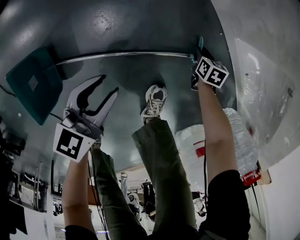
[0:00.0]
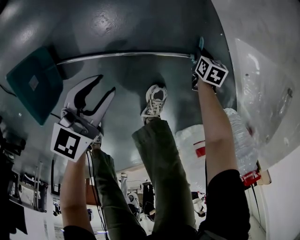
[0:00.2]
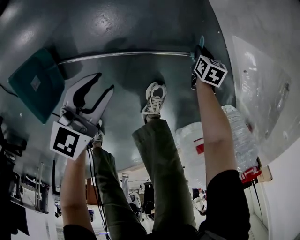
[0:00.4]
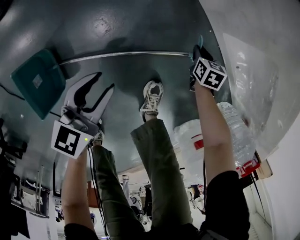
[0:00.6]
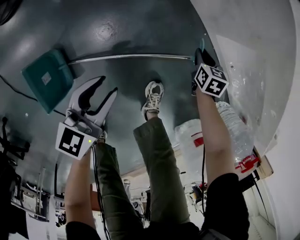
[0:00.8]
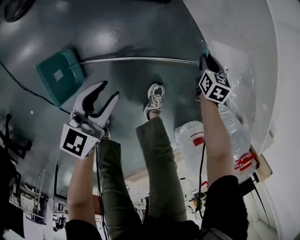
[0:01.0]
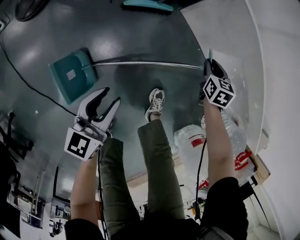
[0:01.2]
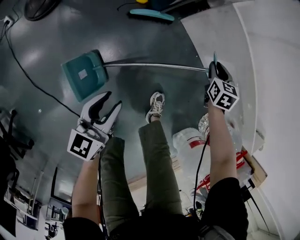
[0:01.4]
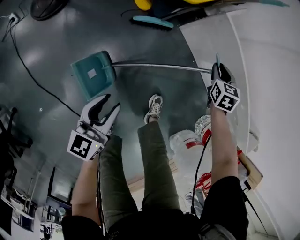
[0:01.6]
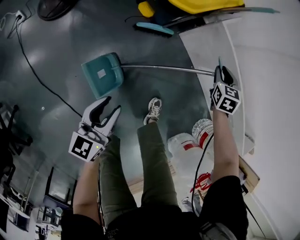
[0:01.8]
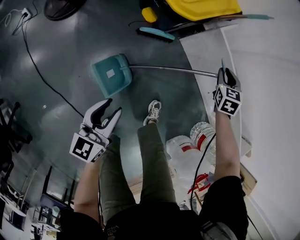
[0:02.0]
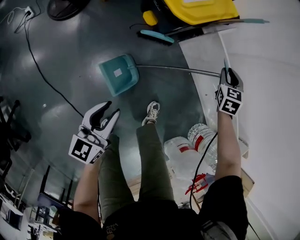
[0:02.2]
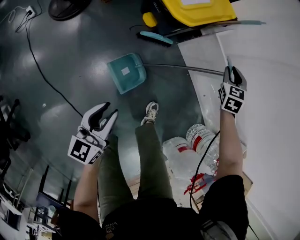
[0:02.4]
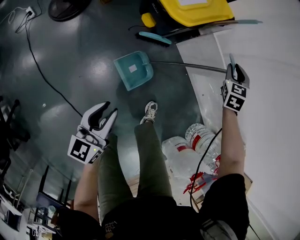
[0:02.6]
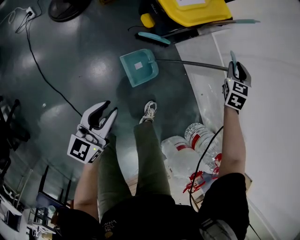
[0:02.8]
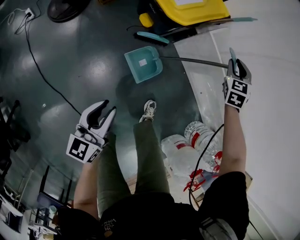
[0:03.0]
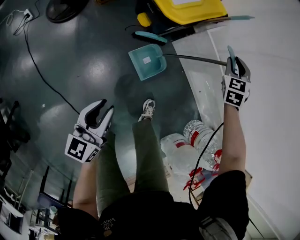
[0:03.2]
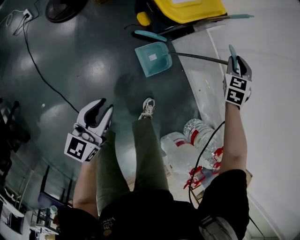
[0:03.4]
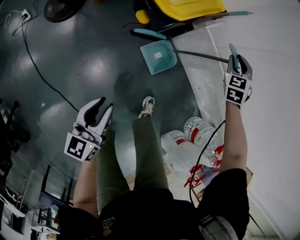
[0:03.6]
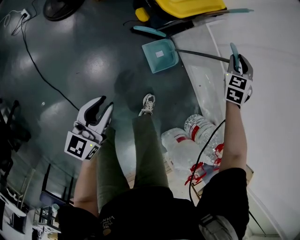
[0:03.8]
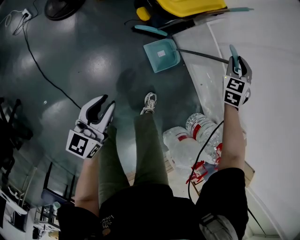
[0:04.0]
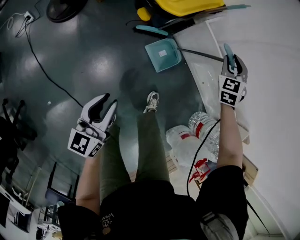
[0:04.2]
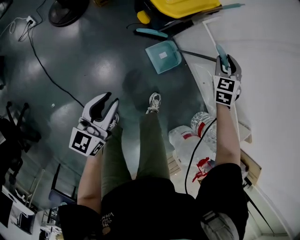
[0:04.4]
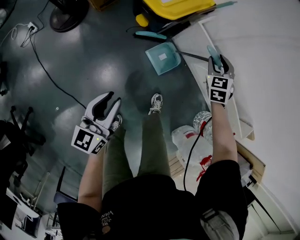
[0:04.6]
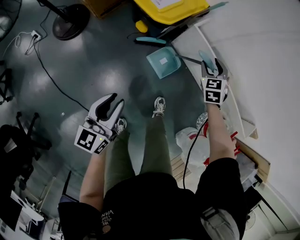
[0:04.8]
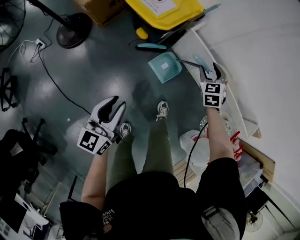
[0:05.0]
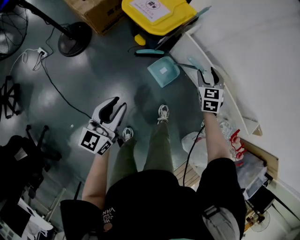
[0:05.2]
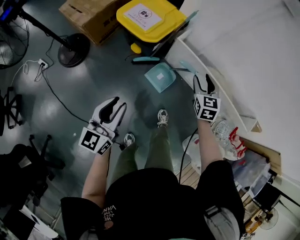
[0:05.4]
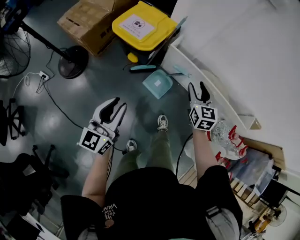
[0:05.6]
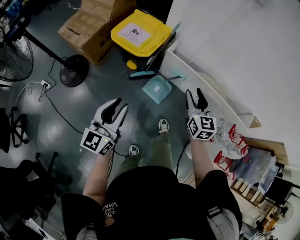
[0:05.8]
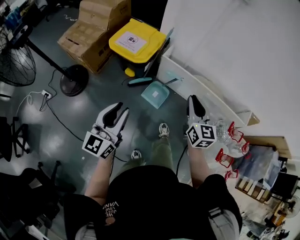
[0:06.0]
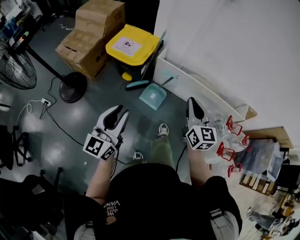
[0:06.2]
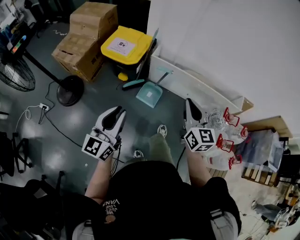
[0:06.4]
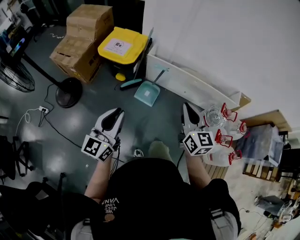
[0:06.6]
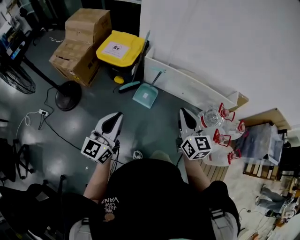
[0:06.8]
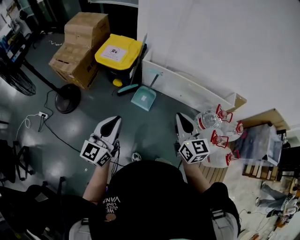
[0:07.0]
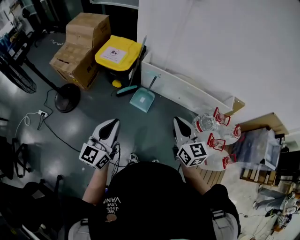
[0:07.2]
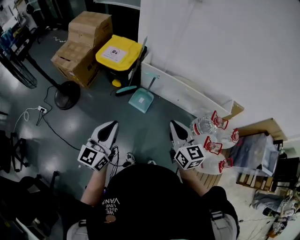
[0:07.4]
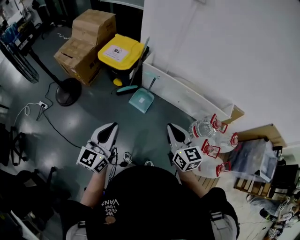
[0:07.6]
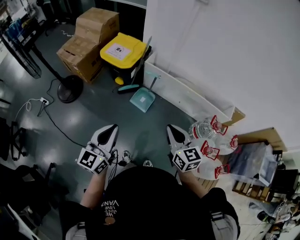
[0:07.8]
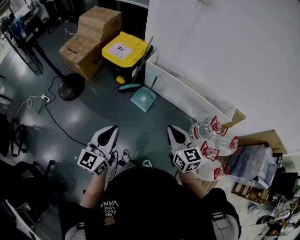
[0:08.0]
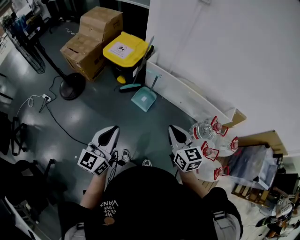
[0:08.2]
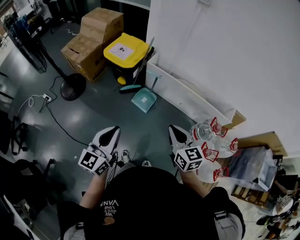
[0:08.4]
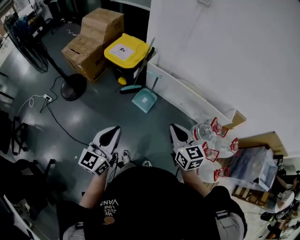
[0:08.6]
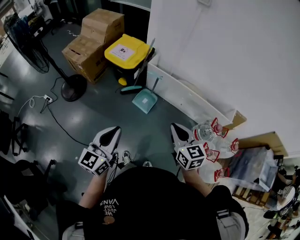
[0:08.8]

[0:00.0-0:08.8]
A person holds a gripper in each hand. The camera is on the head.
0:00.0 to 0:01.4: The left gripper goes about 25 cm upward; the right gripper shifts some 40 cm upward, and rotates some 20 degrees.
0:01.4 to 0:03.0: The right gripper travels upward by about 30 cm, and turns by approximately 30 degrees. The left gripper shifts approximately 15 cm upward.
0:03.0 to 0:04.4: The right gripper shifts some 5 cm backward; the left gripper shifts approximately 5 cm upward.
0:04.4 to 0:05.8: The left gripper travels upward by some 20 cm, and turns by roughly 20 degrees; the right gripper moves backward and upward, approximately 25 cm, and rolls clockwise, seen from behind, by some 40 degrees.
0:05.8 to 0:07.4: The right gripper goes some 25 cm backward, and closes up. The left gripper is displaced backward, to the right and upward by approximately 20 cm, and closes.
0:07.4 to 0:08.8: The left gripper moves backward, some 5 cm.

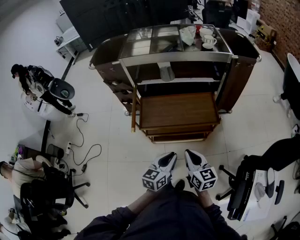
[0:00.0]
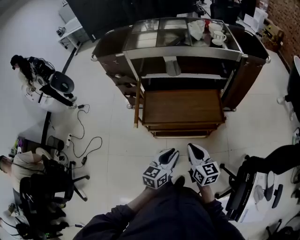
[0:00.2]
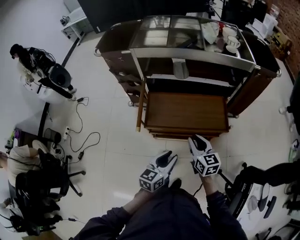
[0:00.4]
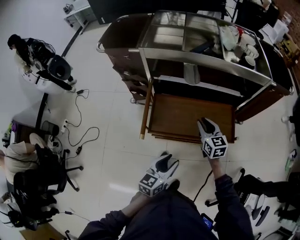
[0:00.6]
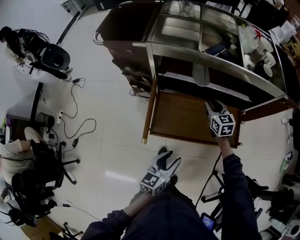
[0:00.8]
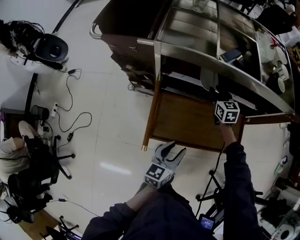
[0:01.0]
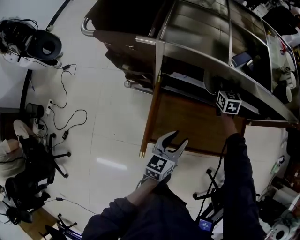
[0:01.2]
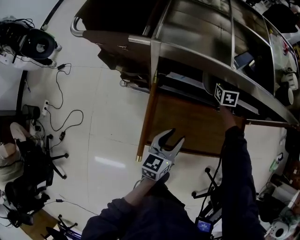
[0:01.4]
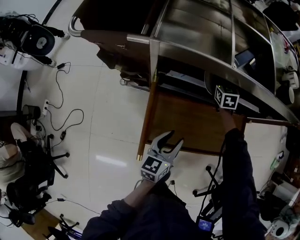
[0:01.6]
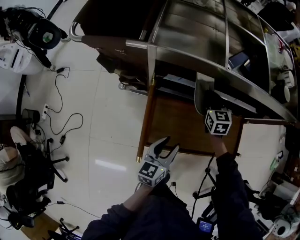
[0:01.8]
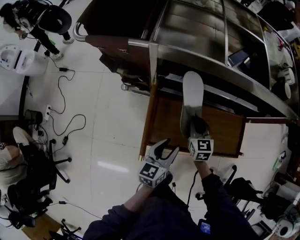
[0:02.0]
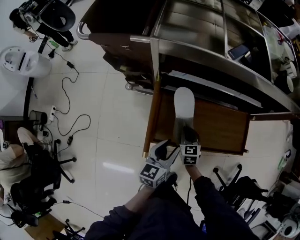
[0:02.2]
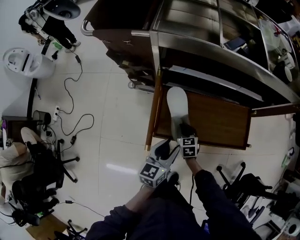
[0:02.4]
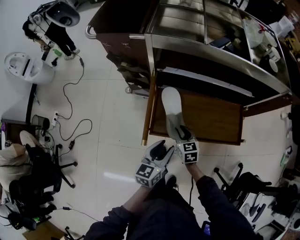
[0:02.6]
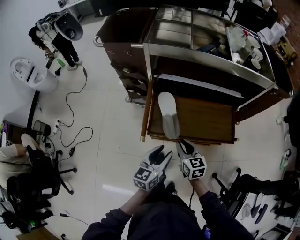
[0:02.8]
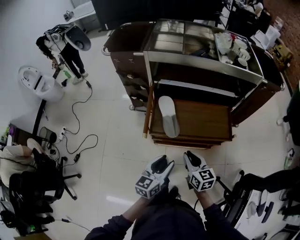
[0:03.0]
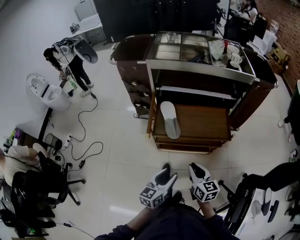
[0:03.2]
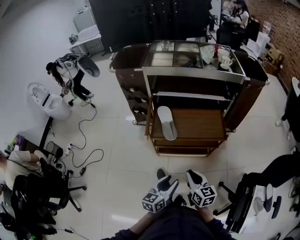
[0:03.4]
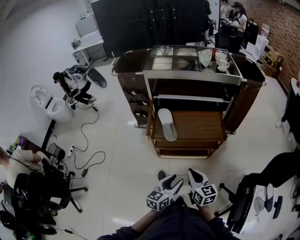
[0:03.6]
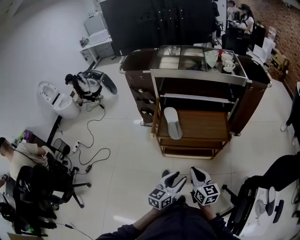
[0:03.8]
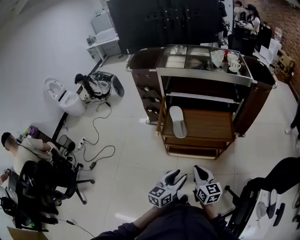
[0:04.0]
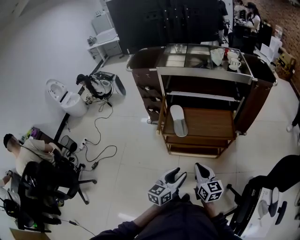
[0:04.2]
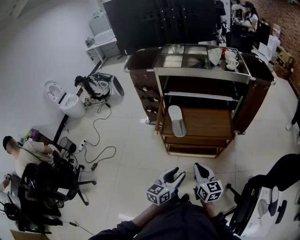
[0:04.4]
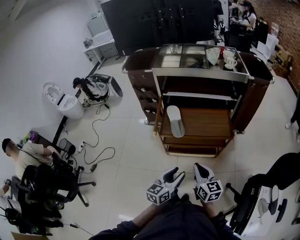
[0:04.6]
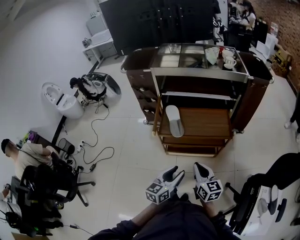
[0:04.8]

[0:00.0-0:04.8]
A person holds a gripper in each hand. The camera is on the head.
0:00.0 to 0:01.6: The two grippers travel together, forward, about 50 cm. The right gripper swivels some 30 degrees, and opens, then closes again, while the left gripper opens its fingers.
0:01.6 to 0:03.2: The right gripper is displaced backward by about 60 cm, and swivels about 30 degrees. Meanwhile the left gripper travels backward by approximately 35 cm.
0:03.2 to 0:04.8: The left gripper heads backward, covering approximately 5 cm, while the right gripper travels backward and upward by roughly 10 cm.

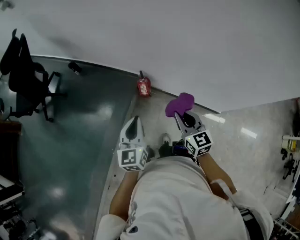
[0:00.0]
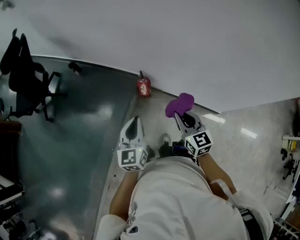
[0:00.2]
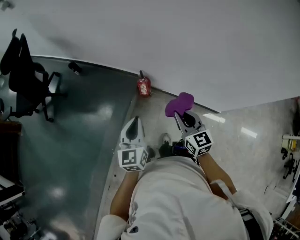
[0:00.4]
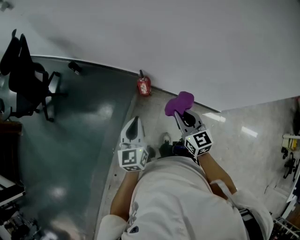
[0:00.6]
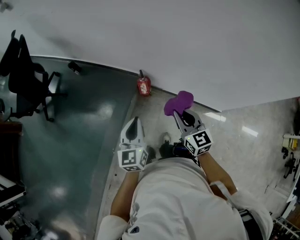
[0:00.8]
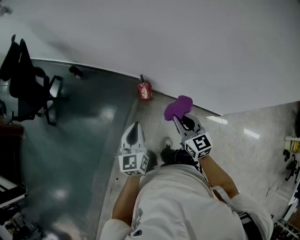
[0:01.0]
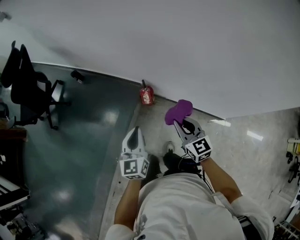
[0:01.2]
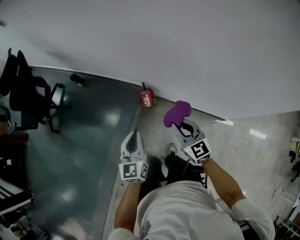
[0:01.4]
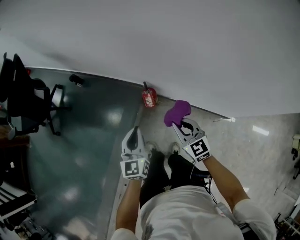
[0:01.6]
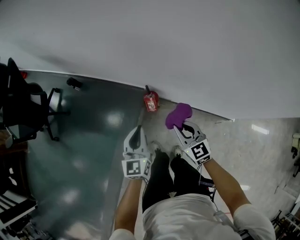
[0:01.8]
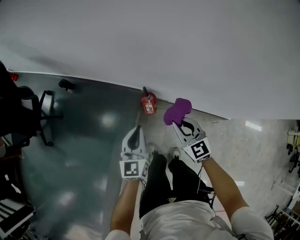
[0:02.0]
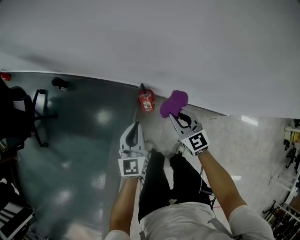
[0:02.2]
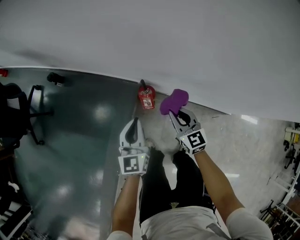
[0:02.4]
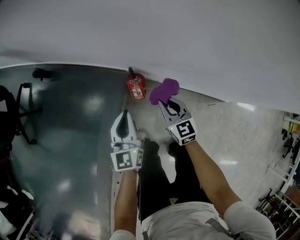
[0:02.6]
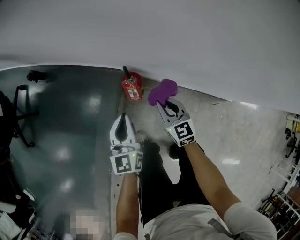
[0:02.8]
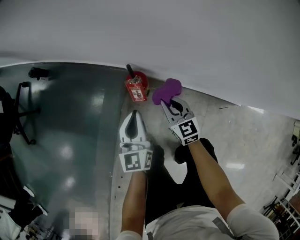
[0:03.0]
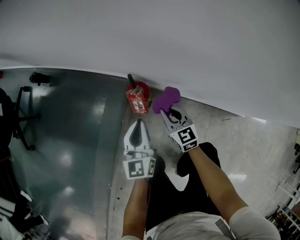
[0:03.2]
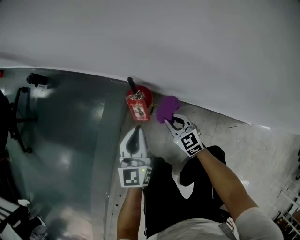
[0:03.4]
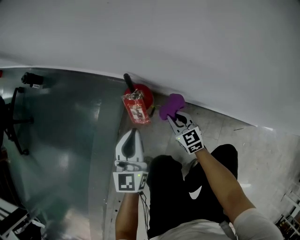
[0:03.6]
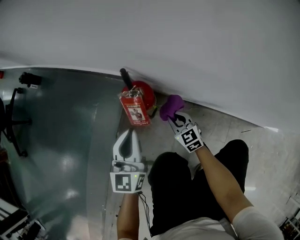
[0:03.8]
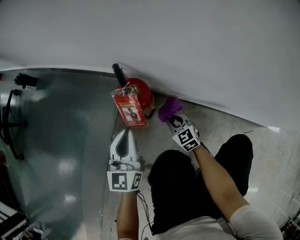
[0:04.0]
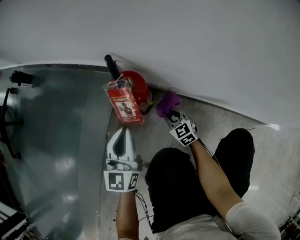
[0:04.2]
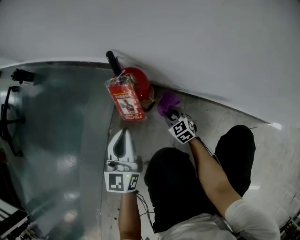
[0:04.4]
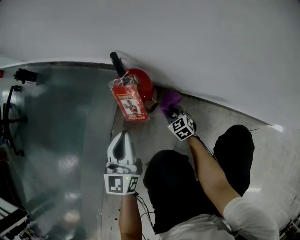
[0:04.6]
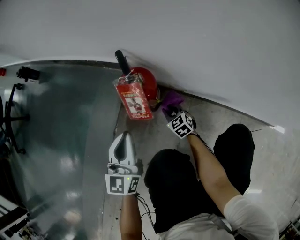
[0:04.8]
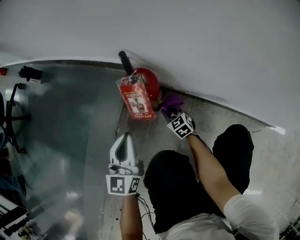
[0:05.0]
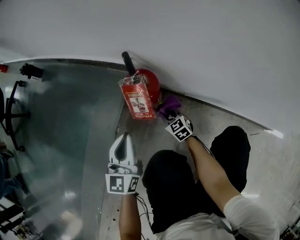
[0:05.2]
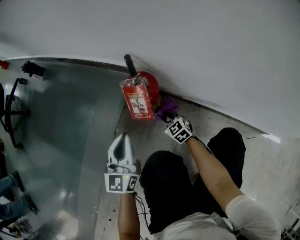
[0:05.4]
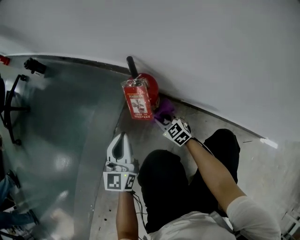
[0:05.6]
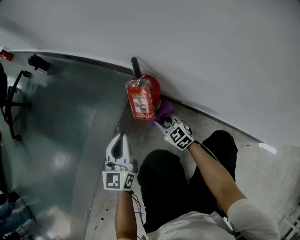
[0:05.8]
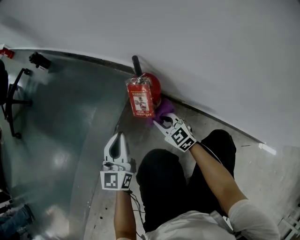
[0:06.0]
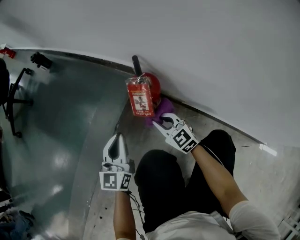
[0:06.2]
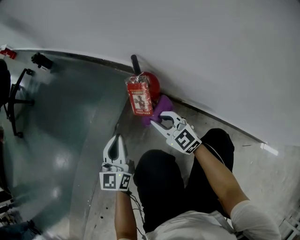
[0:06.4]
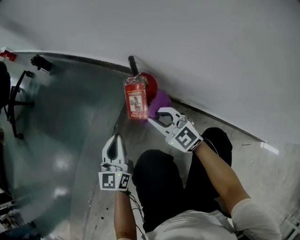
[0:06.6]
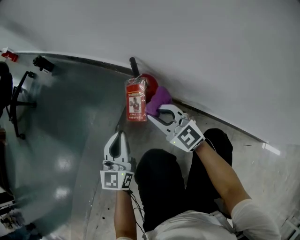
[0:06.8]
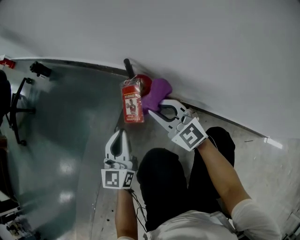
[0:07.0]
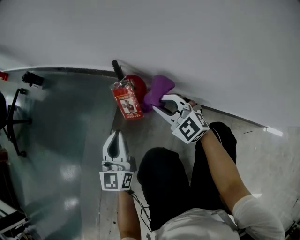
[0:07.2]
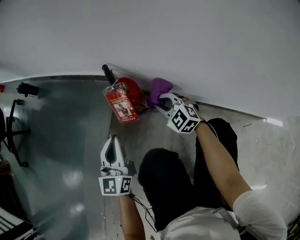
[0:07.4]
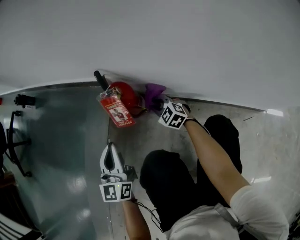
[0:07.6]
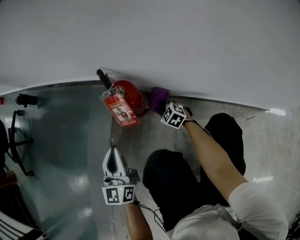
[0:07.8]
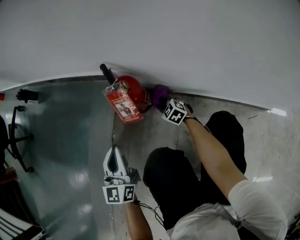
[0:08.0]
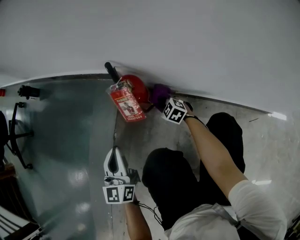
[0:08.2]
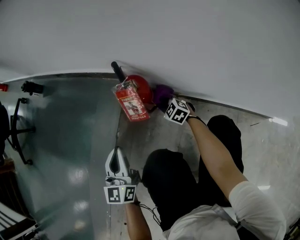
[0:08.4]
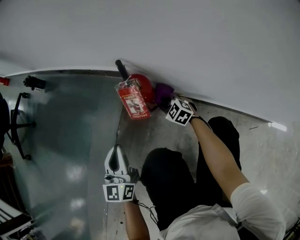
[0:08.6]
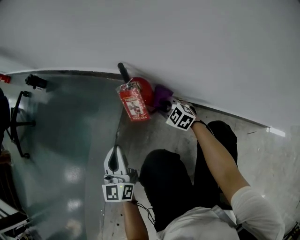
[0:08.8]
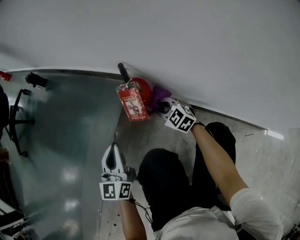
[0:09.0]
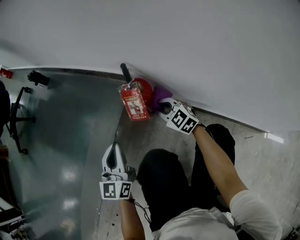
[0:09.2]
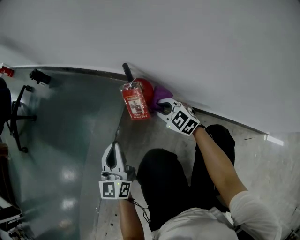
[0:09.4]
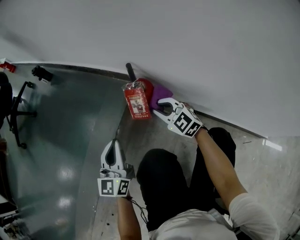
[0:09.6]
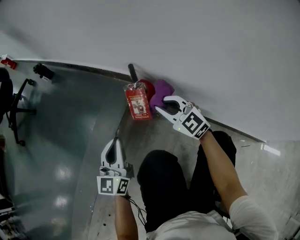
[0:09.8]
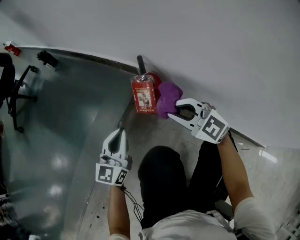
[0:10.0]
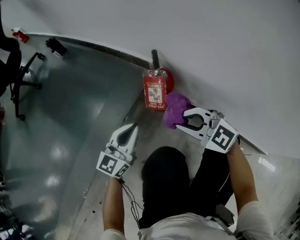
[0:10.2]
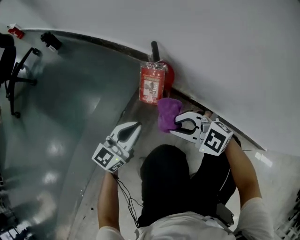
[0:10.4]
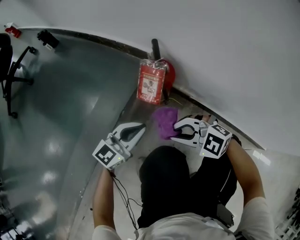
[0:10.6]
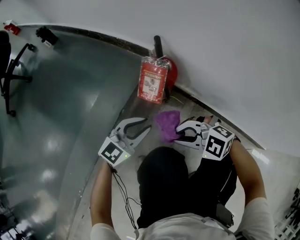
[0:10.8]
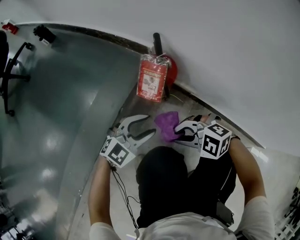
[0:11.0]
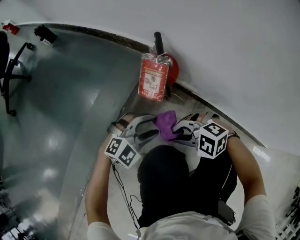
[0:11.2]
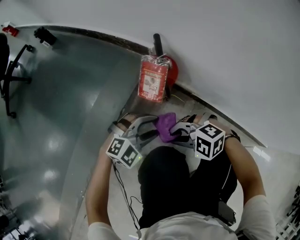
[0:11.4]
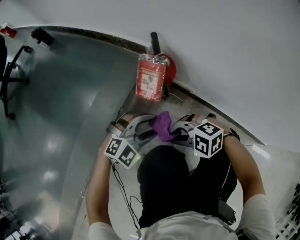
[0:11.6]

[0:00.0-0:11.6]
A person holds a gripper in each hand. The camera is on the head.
0:00.0 to 0:01.4: The left gripper changes place by roughly 5 cm; the right gripper is displaced forward by some 5 cm.
0:01.4 to 0:02.8: The grippers both shift downward and forward by some 35 cm.
0:02.8 to 0:04.4: The right gripper is displaced downward by approximately 50 cm, and changes its angle by some 20 degrees. The left gripper shifts about 30 cm downward.
0:04.4 to 0:05.8: The right gripper travels upward and to the left by roughly 10 cm, while the left gripper ends up about 5 cm from where it was.
0:05.8 to 0:07.2: The right gripper travels upward by roughly 15 cm, and swivels about 20 degrees.
0:07.2 to 0:08.8: The right gripper travels downward by approximately 15 cm, and rotates roughly 20 degrees, while the left gripper moves to the left, about 5 cm.
0:08.8 to 0:10.2: The right gripper travels upward and backward by about 20 cm, and rotates approximately 30 degrees, while the left gripper rotates roughly 20 degrees.
0:10.2 to 0:11.6: The two grippers go approximately 10 cm downward. The right gripper swivels approximately 40 degrees. The left gripper changes its angle by some 60 degrees, and opens its fingers.
